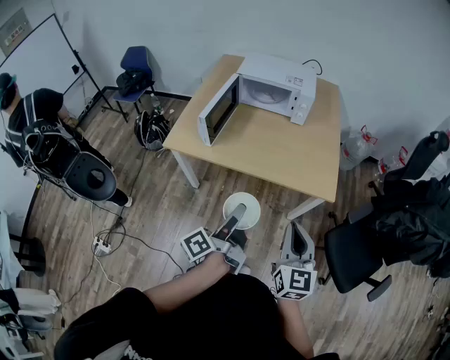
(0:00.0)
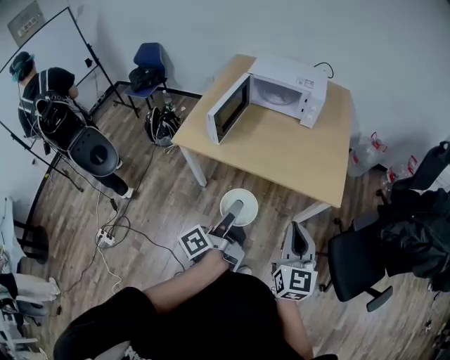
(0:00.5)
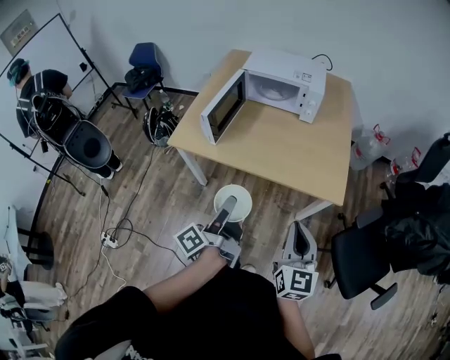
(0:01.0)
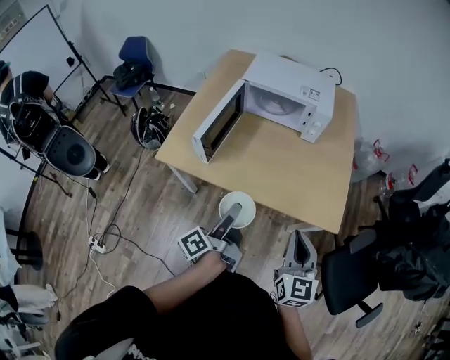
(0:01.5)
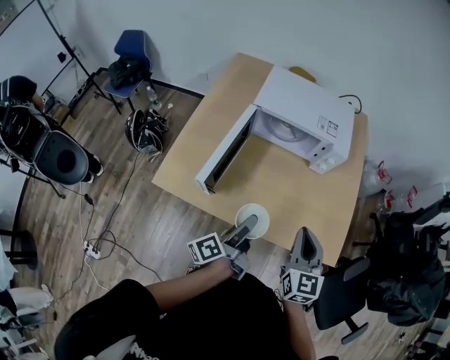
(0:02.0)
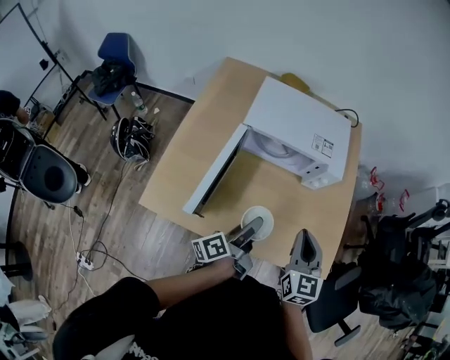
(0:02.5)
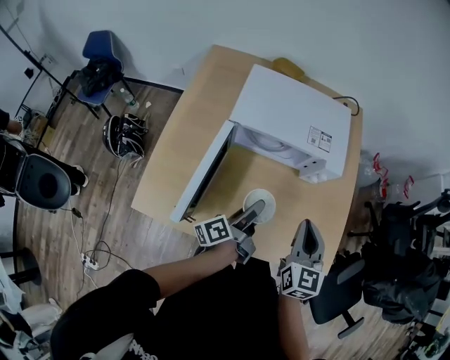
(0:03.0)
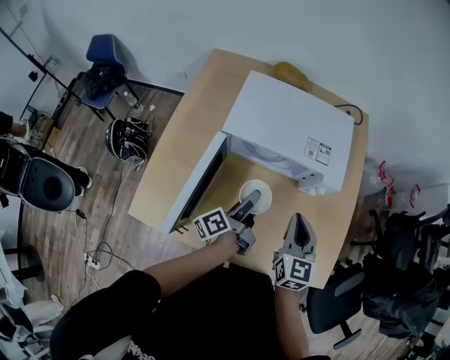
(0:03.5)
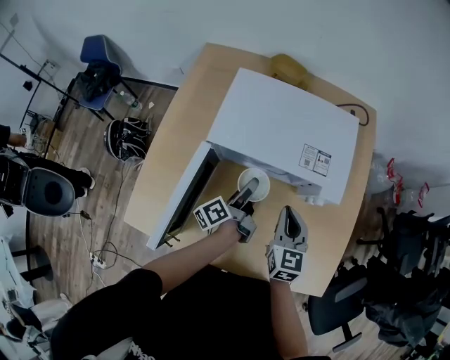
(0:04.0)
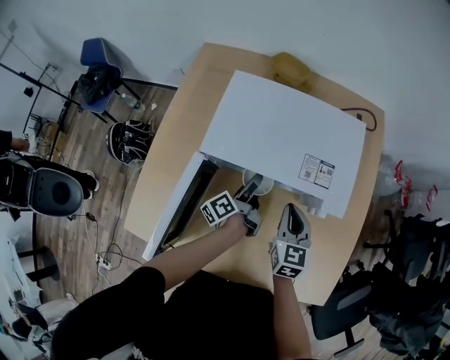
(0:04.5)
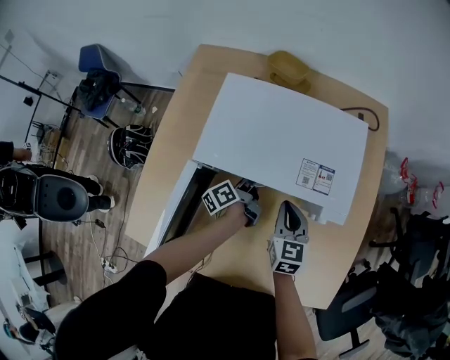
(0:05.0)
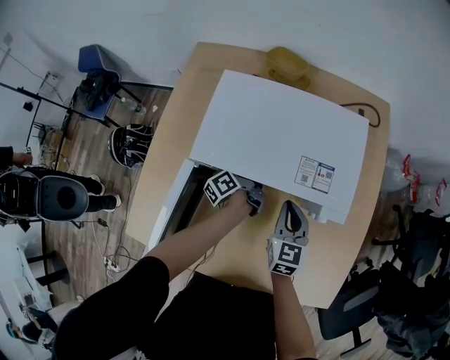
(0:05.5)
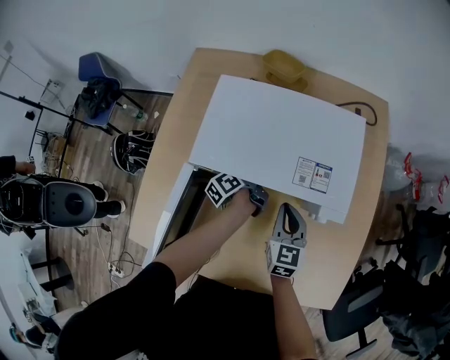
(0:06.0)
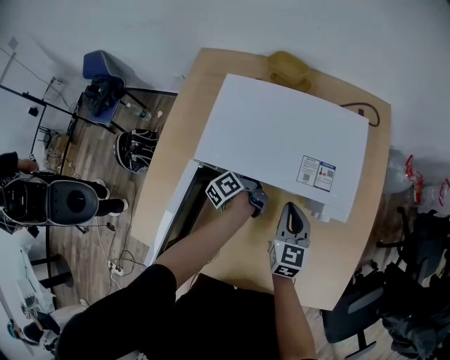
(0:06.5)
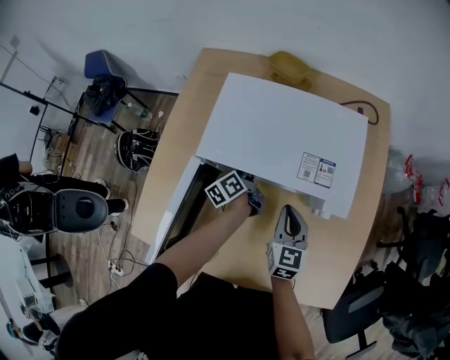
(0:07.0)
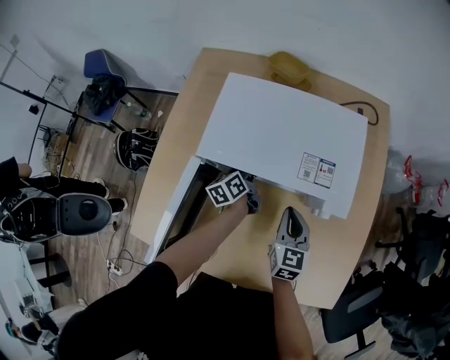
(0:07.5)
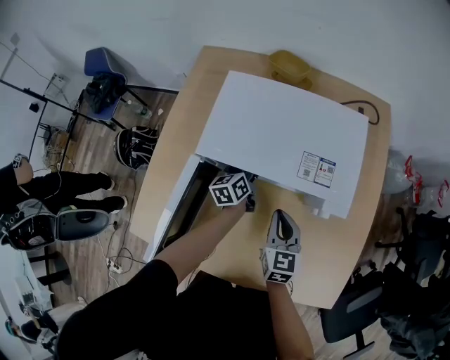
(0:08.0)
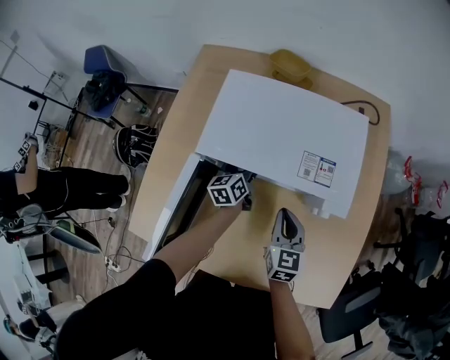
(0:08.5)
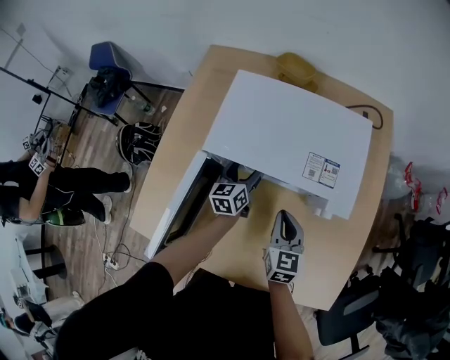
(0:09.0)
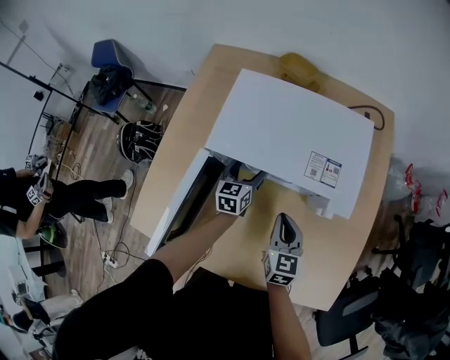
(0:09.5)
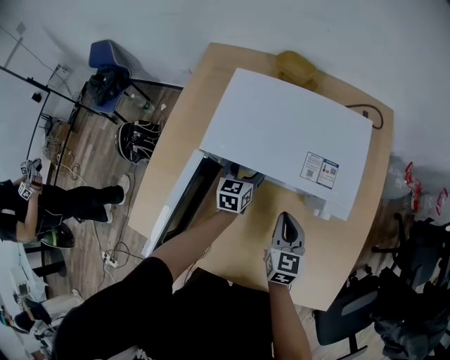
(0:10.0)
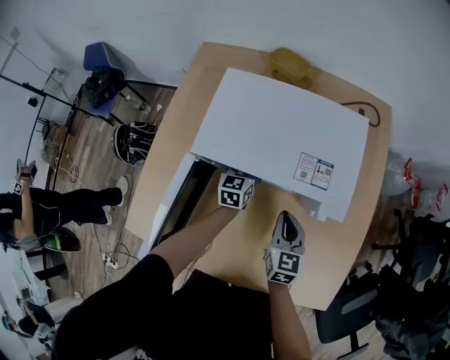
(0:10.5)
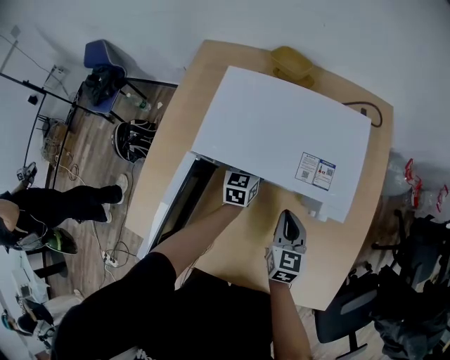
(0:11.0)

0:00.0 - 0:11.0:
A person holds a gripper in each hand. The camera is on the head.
0:00.0 - 0:02.0: Both grippers move forward, roughly 30 cm.
0:02.0 - 0:03.5: The two grippers go some 20 cm forward.
0:03.5 - 0:05.5: The grippers both shift forward and downward by about 20 cm.
0:05.5 - 0:07.5: The left gripper swivels roughly 30 degrees.
0:07.5 - 0:09.0: The left gripper turns by some 30 degrees.
0:09.0 - 0:11.0: The left gripper shifts by about 5 cm.

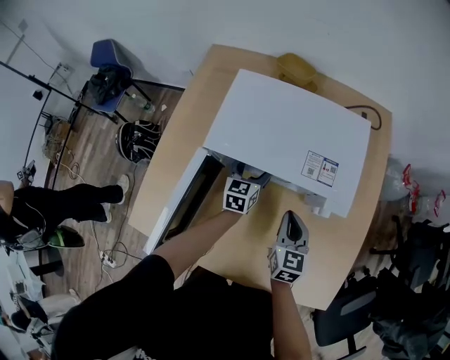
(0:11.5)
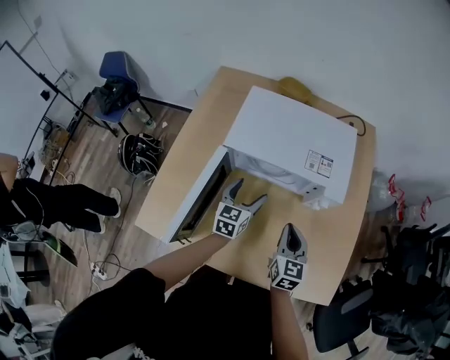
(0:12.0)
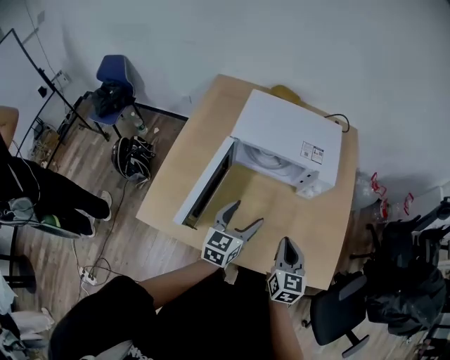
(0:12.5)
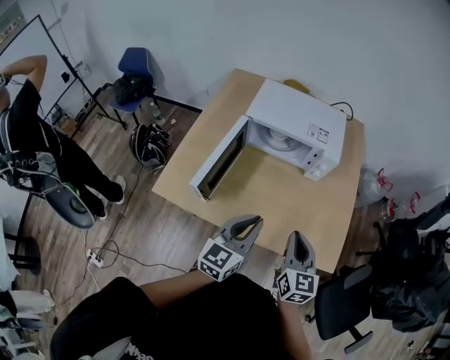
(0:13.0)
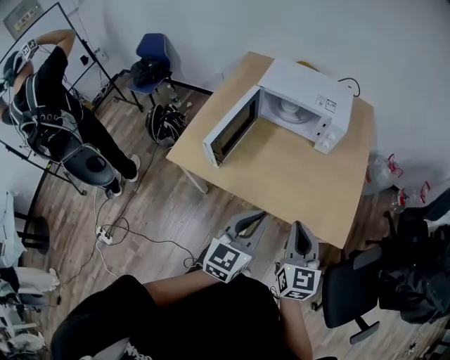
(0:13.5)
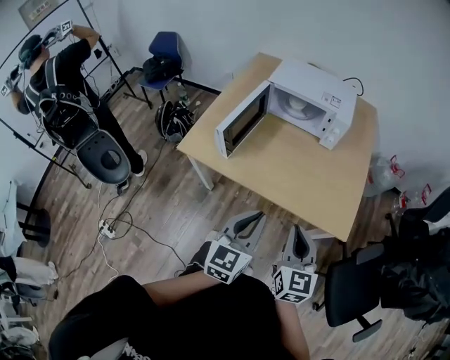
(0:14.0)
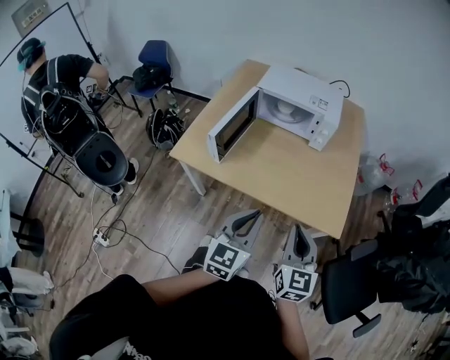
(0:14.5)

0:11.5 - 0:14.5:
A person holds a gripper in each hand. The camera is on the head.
0:11.5 - 0:13.0: The two grippers go some 40 cm backward and upward. The left gripper changes its angle by roughly 20 degrees, and closes.
0:13.0 - 0:14.5: Both grippers move backward, roughly 20 cm.

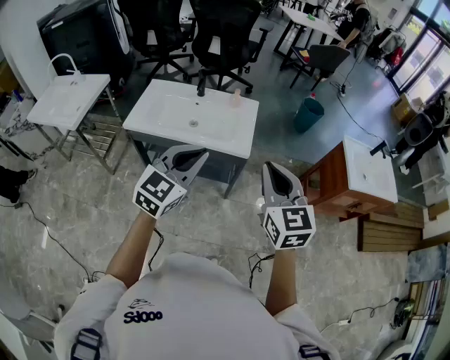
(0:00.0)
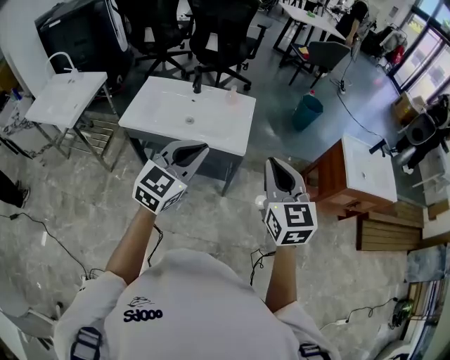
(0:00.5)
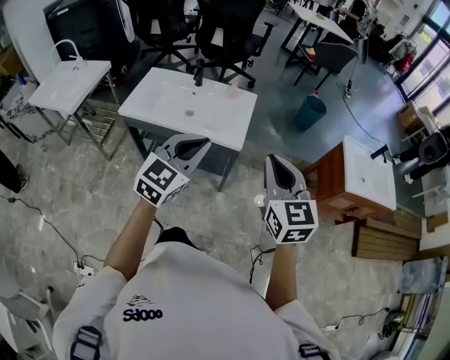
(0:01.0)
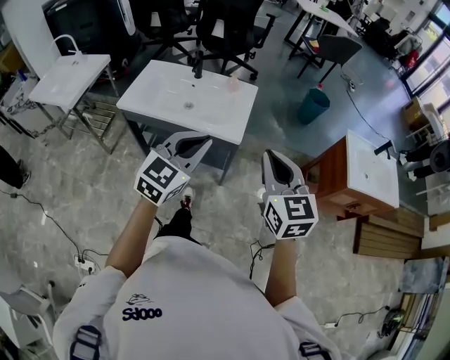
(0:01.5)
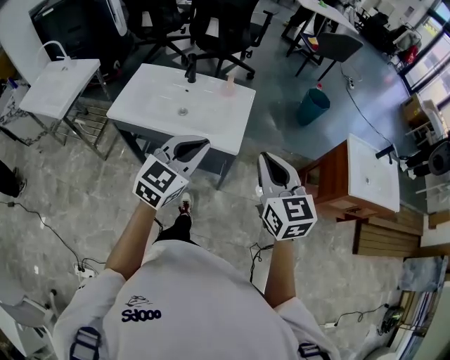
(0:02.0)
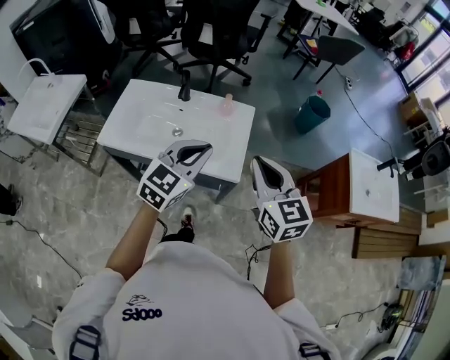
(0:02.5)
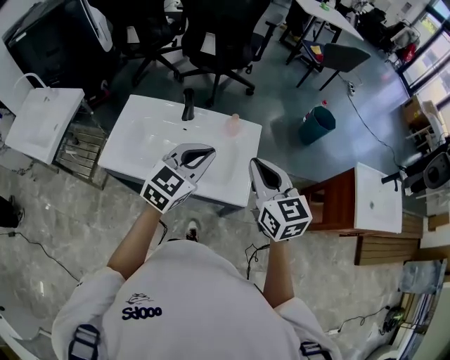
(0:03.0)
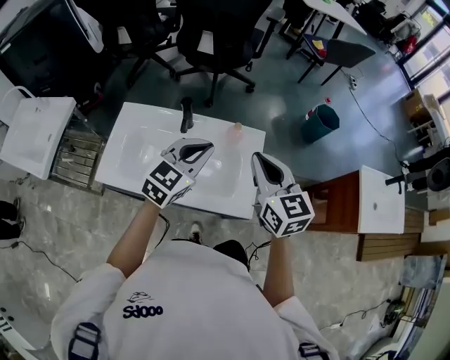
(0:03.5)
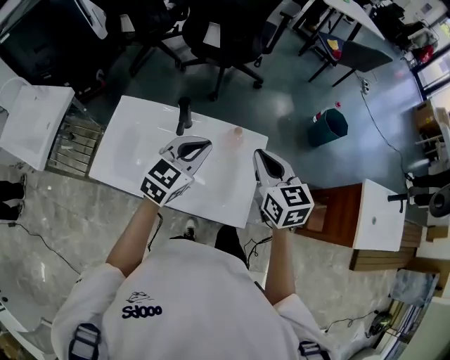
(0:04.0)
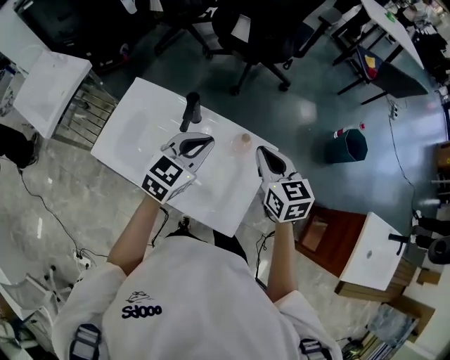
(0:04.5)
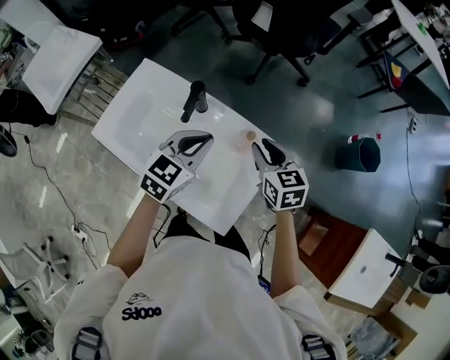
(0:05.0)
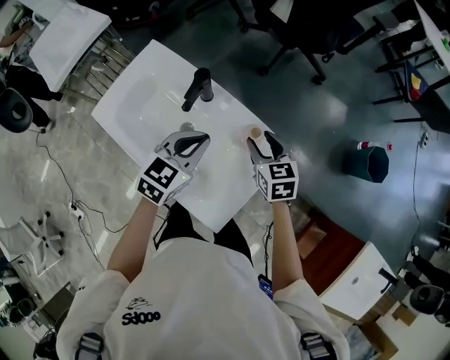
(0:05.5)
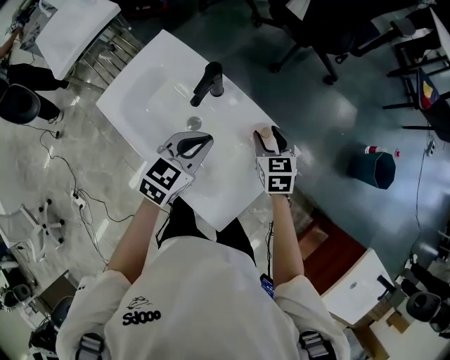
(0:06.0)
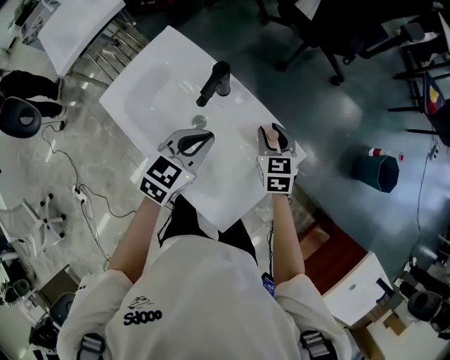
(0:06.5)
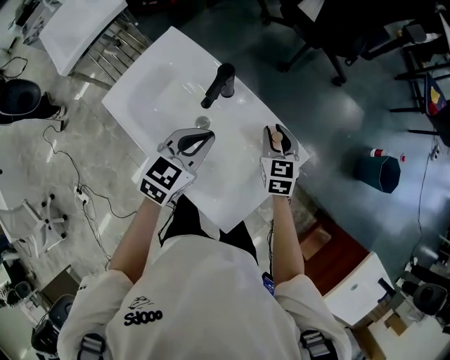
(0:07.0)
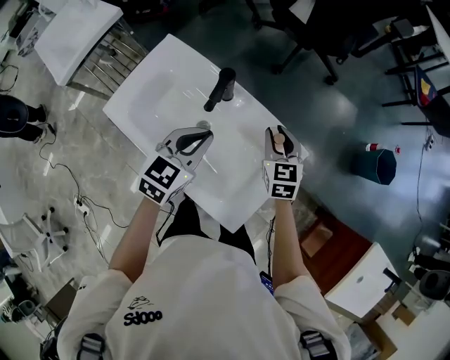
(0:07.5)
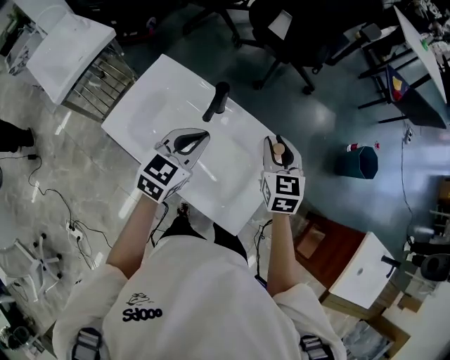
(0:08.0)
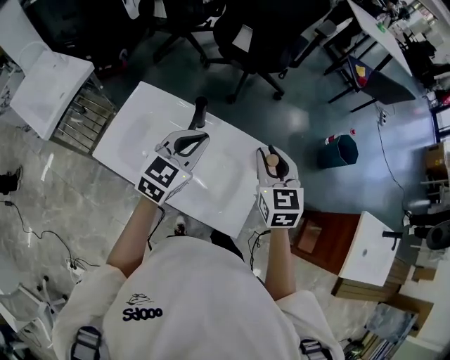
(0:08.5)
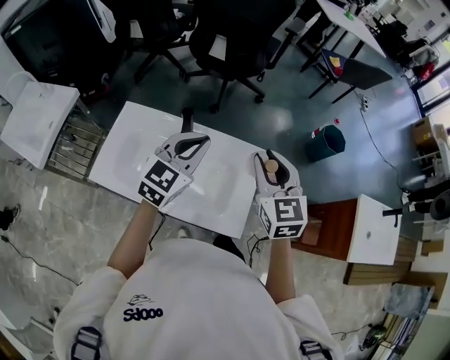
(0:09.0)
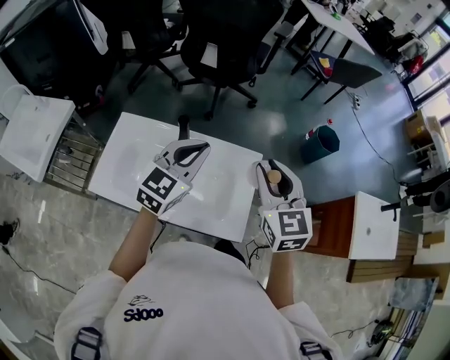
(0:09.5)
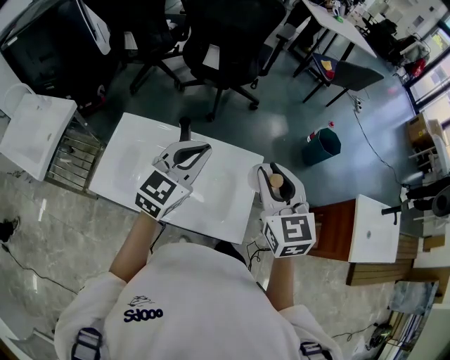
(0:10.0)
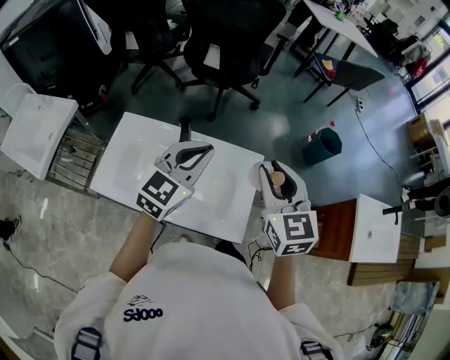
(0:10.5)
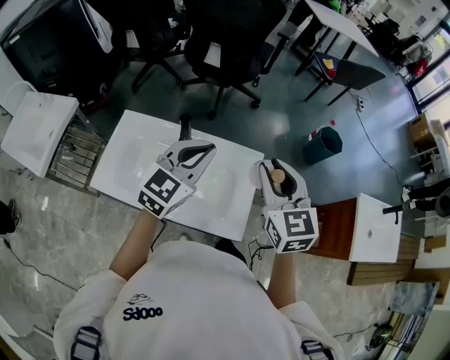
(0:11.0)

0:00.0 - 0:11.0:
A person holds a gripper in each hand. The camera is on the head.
0:00.0 - 0:02.0: The left gripper moves forward and to the right, approximately 10 cm, while the right gripper travels forward by about 10 cm.
0:02.0 - 0:03.5: The right gripper goes approximately 30 cm forward and to the left, while the left gripper is displaced forward by some 30 cm.
0:03.5 - 0:05.5: The left gripper heads downward, covering about 10 cm, and rotates about 40 degrees. Meanwhile the right gripper travels downward by some 25 cm, swivels some 40 degrees, and opens.
0:05.5 - 0:07.5: The left gripper heads to the left, covering roughly 5 cm. The right gripper closes.
0:07.5 - 0:09.0: The right gripper heads upward and backward, covering roughly 25 cm, and swivels roughly 20 degrees, while the left gripper travels upward by roughly 15 cm, and changes its angle by about 30 degrees.
0:09.0 - 0:11.0: The grippers move only a little.

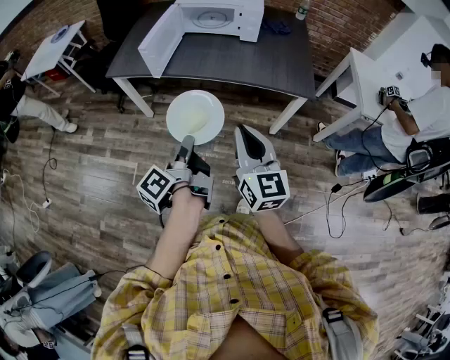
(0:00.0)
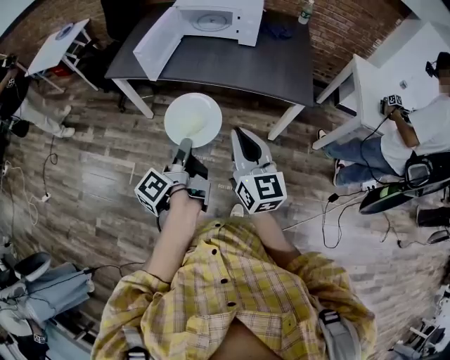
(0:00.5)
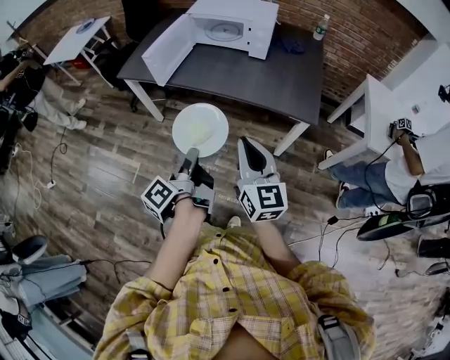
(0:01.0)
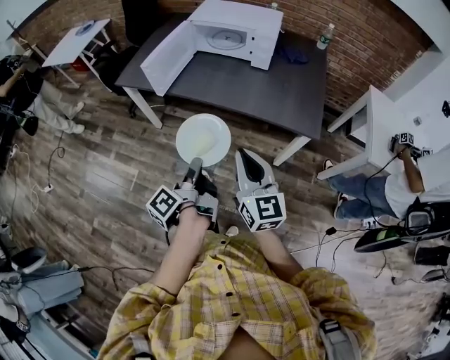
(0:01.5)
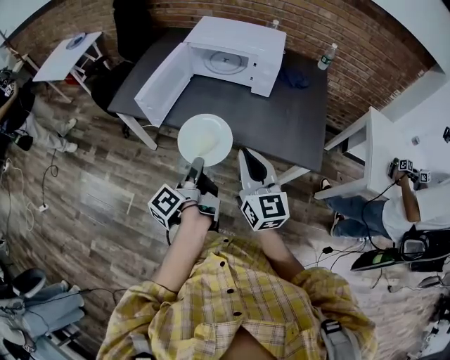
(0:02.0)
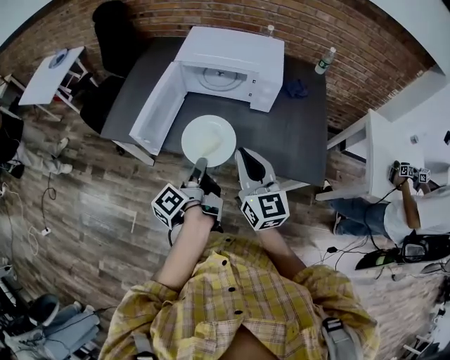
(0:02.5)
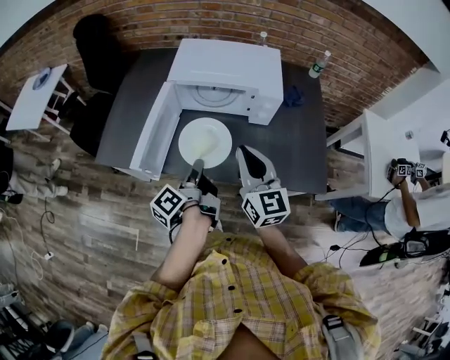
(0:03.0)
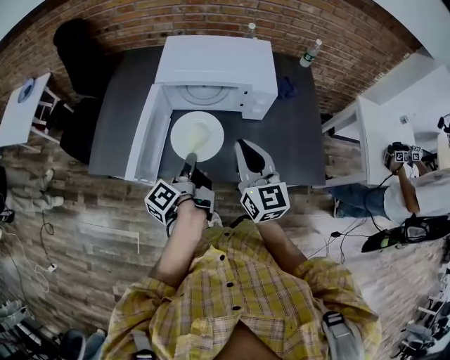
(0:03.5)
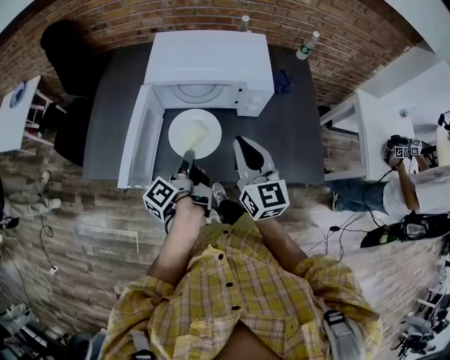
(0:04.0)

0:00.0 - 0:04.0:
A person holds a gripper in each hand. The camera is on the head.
0:00.0 - 0:02.0: The right gripper shifts by about 25 cm.
0:02.0 - 0:04.0: The right gripper moves approximately 25 cm.
